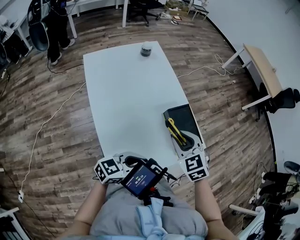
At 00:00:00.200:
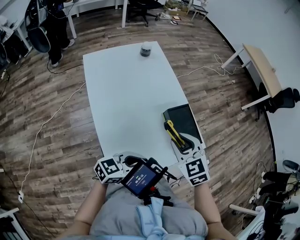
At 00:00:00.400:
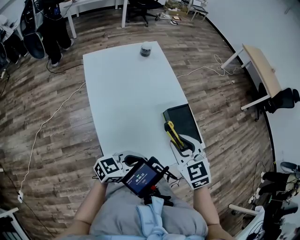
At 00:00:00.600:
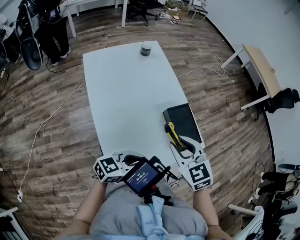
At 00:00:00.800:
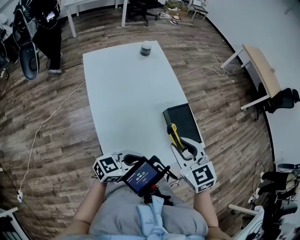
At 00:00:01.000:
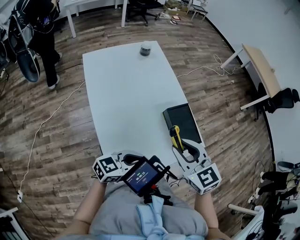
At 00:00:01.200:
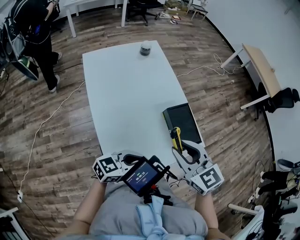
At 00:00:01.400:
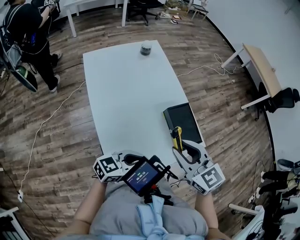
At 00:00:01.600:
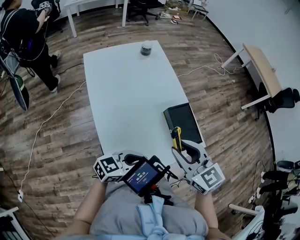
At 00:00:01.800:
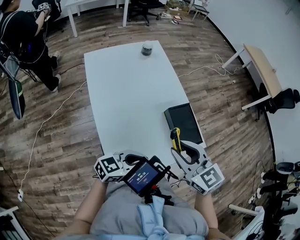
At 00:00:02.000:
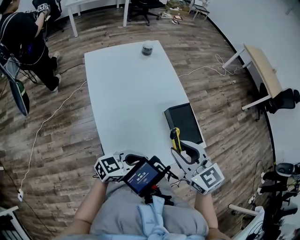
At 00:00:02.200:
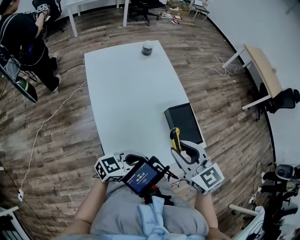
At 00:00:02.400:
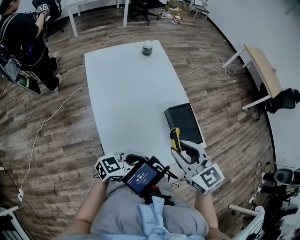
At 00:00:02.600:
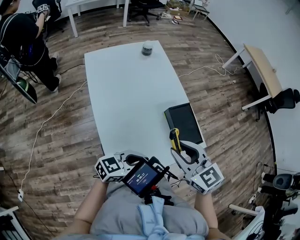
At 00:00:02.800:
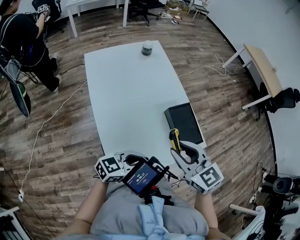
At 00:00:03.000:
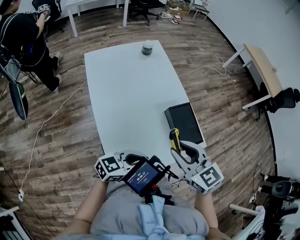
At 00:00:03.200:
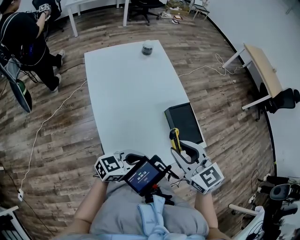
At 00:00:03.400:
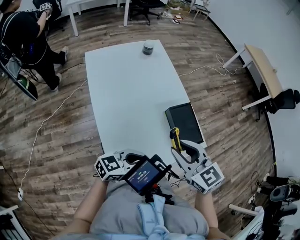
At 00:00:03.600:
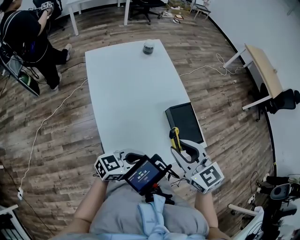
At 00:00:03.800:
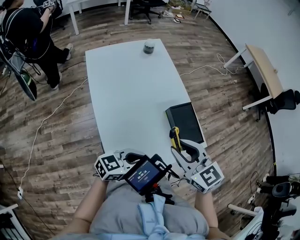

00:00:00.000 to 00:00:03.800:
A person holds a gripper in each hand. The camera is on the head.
00:00:00.000 to 00:00:01.200: The right gripper shifts some 10 cm upward and backward, and rotates about 20 degrees.
00:00:01.200 to 00:00:03.800: Neither gripper changes place.

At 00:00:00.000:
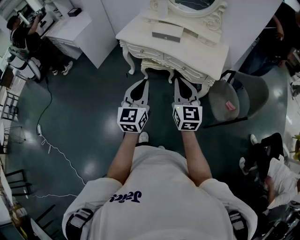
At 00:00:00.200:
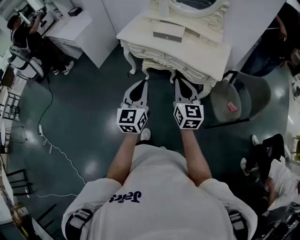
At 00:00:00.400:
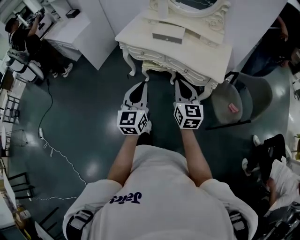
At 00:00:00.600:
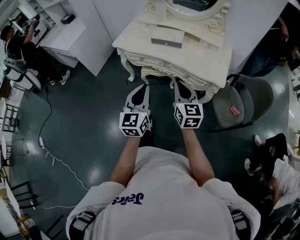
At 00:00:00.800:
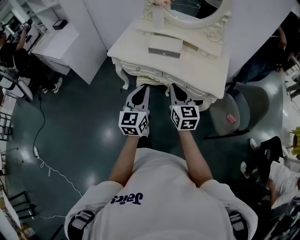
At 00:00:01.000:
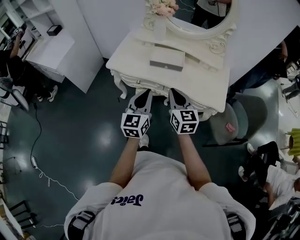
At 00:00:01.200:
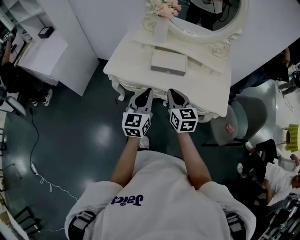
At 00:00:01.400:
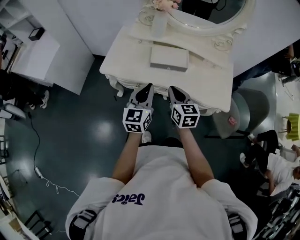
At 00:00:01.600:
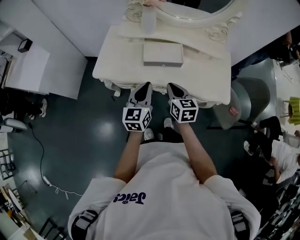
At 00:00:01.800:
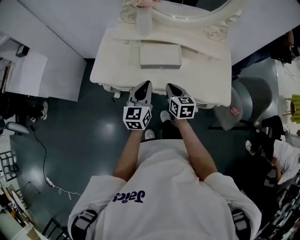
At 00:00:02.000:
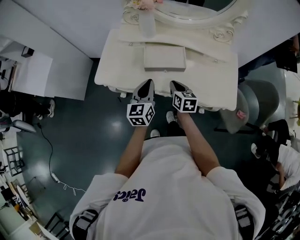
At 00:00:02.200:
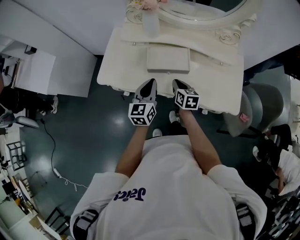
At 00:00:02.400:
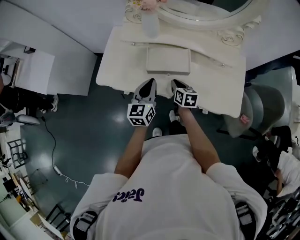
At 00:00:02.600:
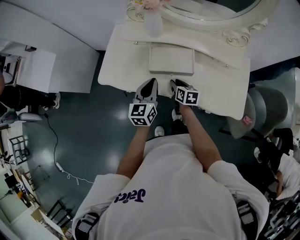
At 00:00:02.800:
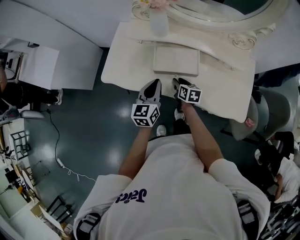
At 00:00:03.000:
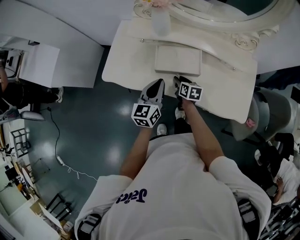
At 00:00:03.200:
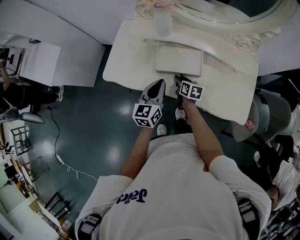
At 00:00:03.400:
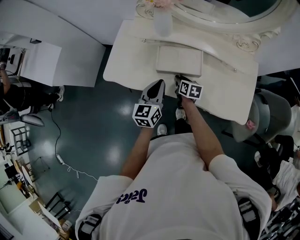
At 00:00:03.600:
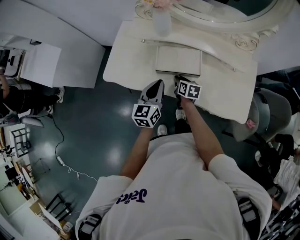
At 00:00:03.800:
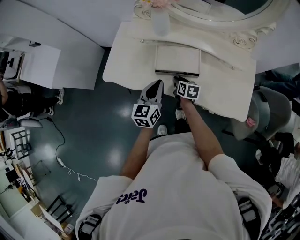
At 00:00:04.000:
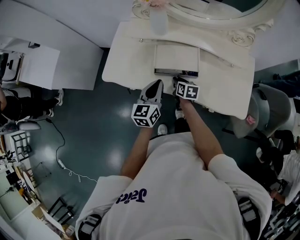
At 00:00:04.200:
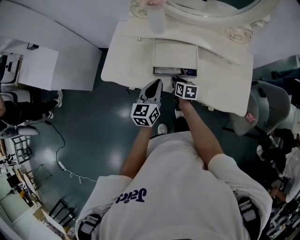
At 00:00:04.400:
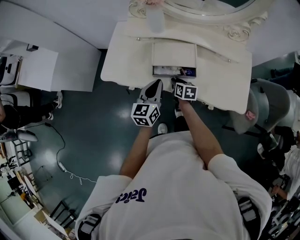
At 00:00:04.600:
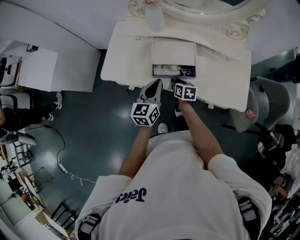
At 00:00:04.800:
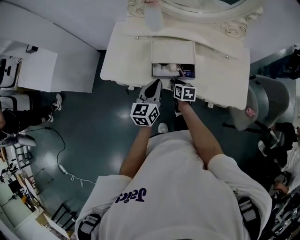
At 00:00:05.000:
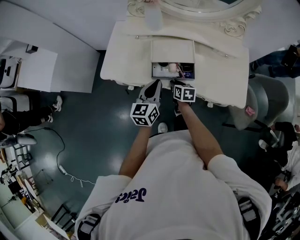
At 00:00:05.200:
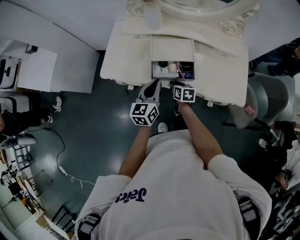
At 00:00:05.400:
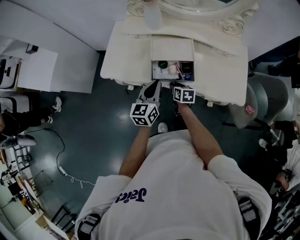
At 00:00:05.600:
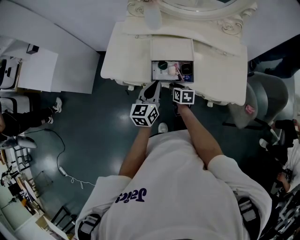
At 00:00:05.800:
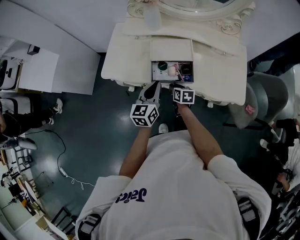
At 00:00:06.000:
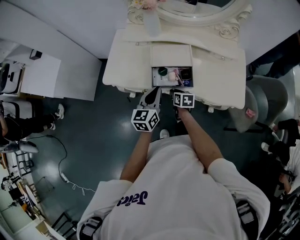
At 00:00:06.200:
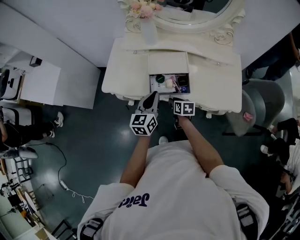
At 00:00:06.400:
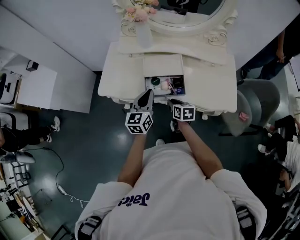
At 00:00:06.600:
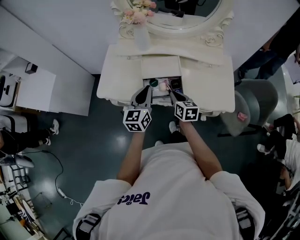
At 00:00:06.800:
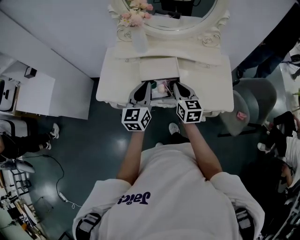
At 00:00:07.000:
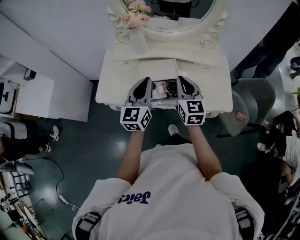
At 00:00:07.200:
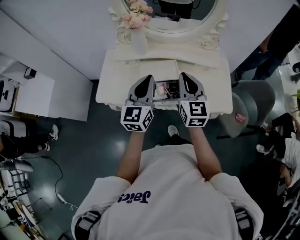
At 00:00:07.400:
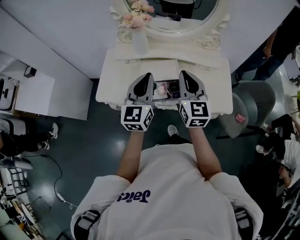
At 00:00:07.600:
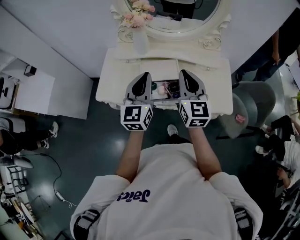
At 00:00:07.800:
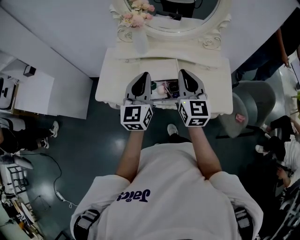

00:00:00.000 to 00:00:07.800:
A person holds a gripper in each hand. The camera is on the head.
00:00:00.000 to 00:00:01.600: Both grippers are carried forward, about 40 cm. The right gripper rotates roughly 30 degrees. The left gripper turns by some 20 degrees.
00:00:01.600 to 00:00:03.200: The left gripper moves forward and downward, approximately 15 cm; the right gripper shifts some 25 cm downward and forward, swivels roughly 30 degrees, and opens.
00:00:03.200 to 00:00:04.600: The right gripper shifts approximately 5 cm backward.
00:00:04.600 to 00:00:06.200: The right gripper moves backward, approximately 5 cm.
00:00:06.200 to 00:00:07.800: The right gripper is displaced upward by roughly 35 cm, angles its fingers upward, by about 40 degrees, and closes its fingers; the left gripper travels upward by approximately 15 cm, and turns by roughly 20 degrees.

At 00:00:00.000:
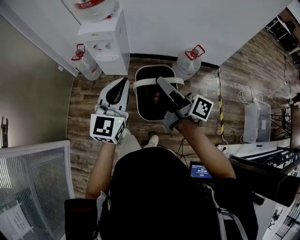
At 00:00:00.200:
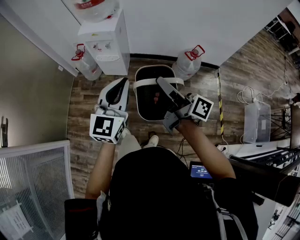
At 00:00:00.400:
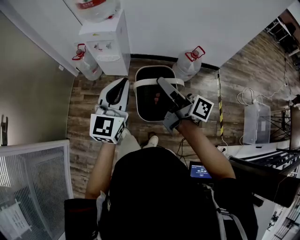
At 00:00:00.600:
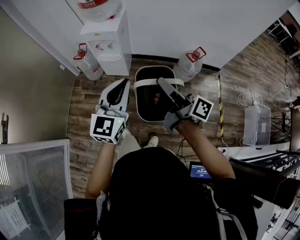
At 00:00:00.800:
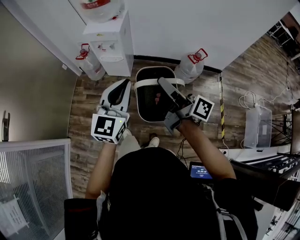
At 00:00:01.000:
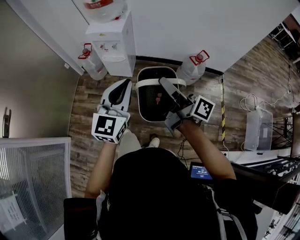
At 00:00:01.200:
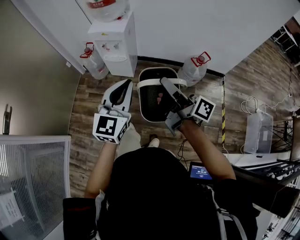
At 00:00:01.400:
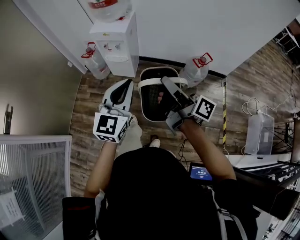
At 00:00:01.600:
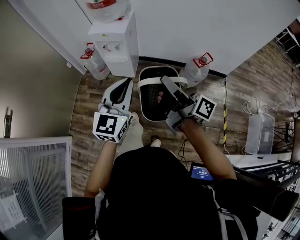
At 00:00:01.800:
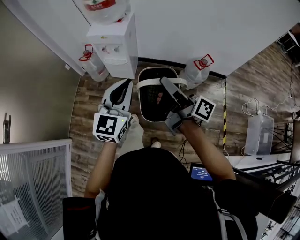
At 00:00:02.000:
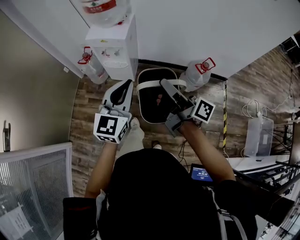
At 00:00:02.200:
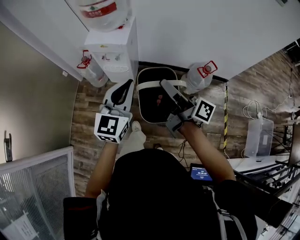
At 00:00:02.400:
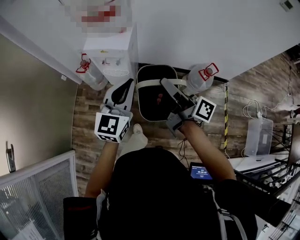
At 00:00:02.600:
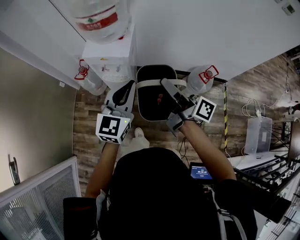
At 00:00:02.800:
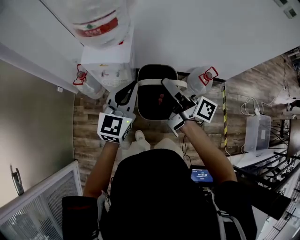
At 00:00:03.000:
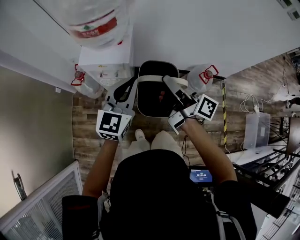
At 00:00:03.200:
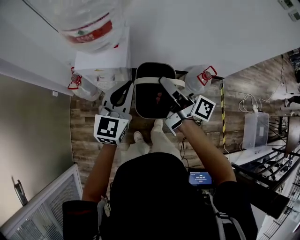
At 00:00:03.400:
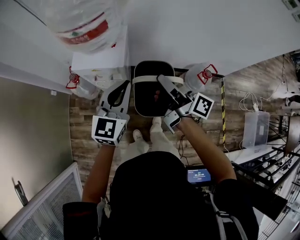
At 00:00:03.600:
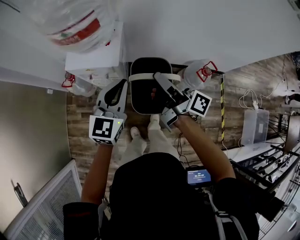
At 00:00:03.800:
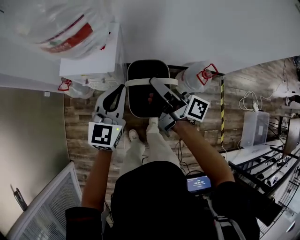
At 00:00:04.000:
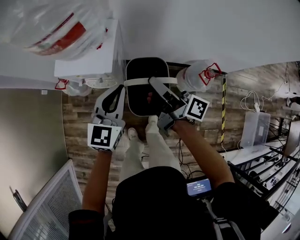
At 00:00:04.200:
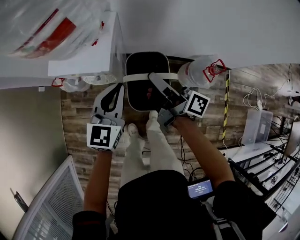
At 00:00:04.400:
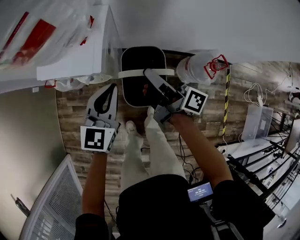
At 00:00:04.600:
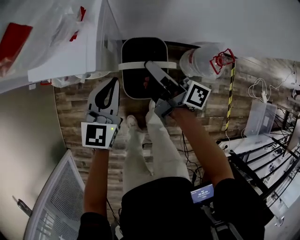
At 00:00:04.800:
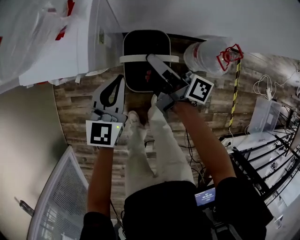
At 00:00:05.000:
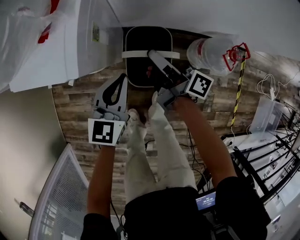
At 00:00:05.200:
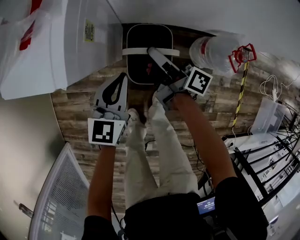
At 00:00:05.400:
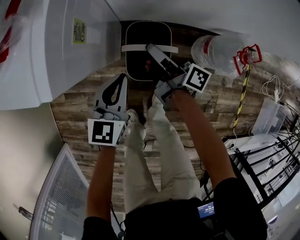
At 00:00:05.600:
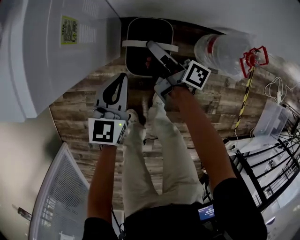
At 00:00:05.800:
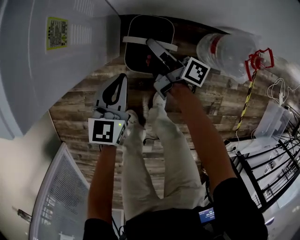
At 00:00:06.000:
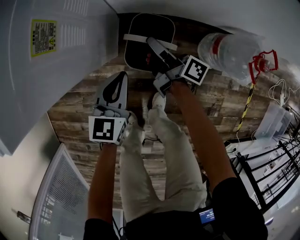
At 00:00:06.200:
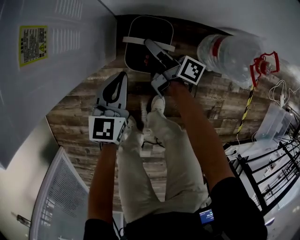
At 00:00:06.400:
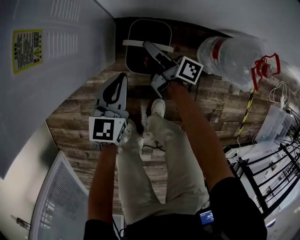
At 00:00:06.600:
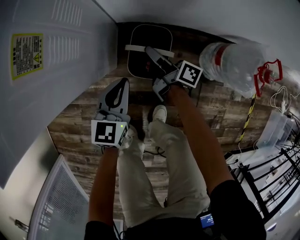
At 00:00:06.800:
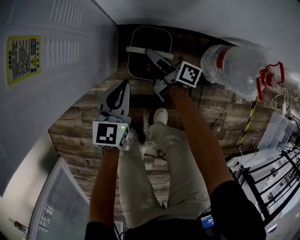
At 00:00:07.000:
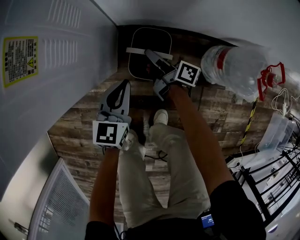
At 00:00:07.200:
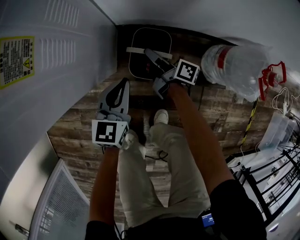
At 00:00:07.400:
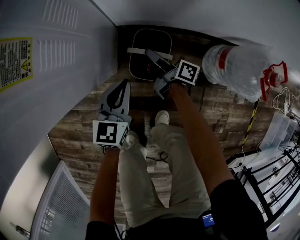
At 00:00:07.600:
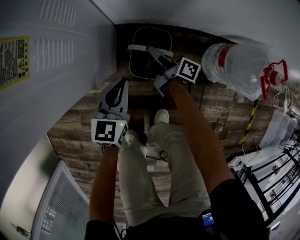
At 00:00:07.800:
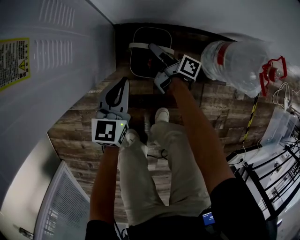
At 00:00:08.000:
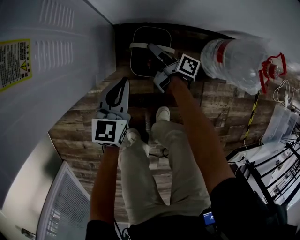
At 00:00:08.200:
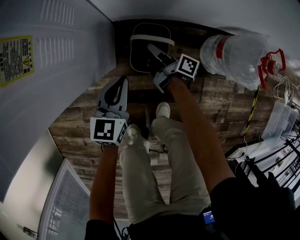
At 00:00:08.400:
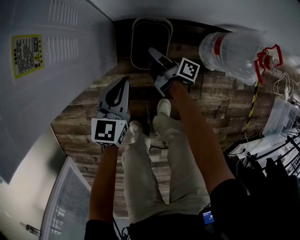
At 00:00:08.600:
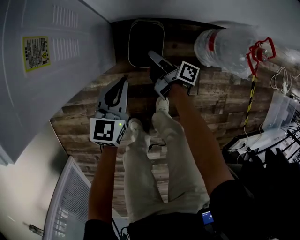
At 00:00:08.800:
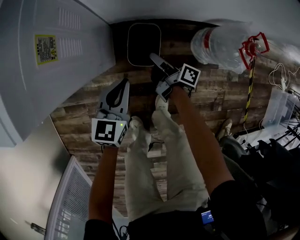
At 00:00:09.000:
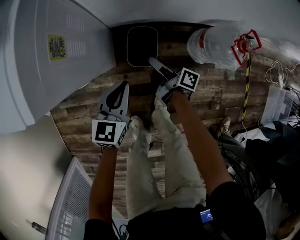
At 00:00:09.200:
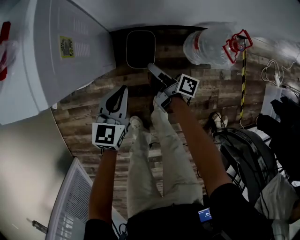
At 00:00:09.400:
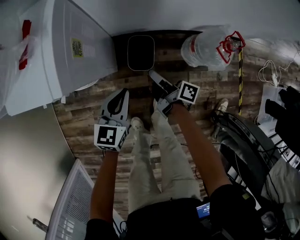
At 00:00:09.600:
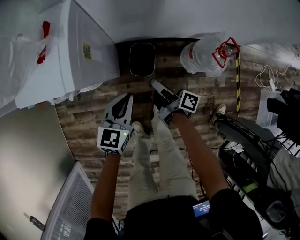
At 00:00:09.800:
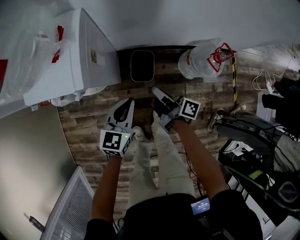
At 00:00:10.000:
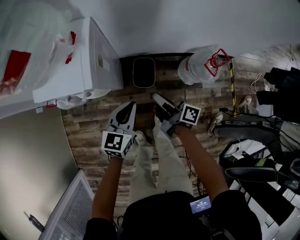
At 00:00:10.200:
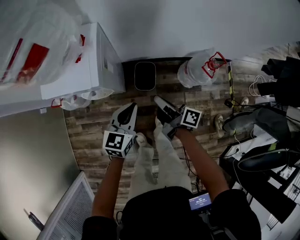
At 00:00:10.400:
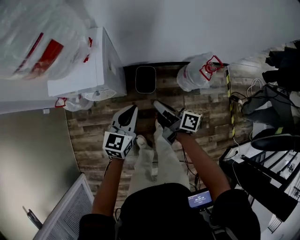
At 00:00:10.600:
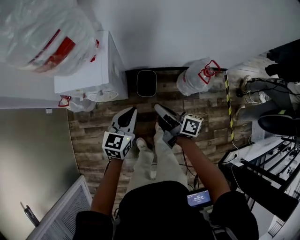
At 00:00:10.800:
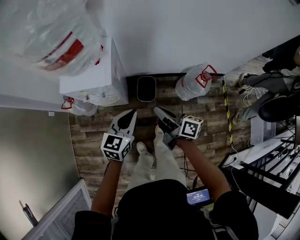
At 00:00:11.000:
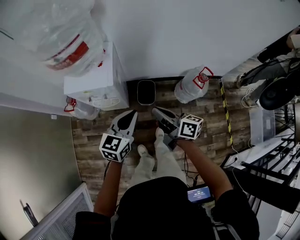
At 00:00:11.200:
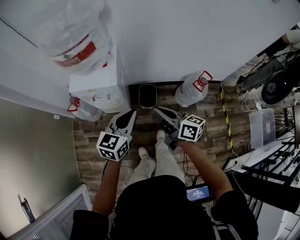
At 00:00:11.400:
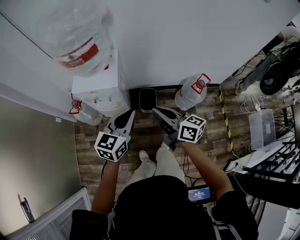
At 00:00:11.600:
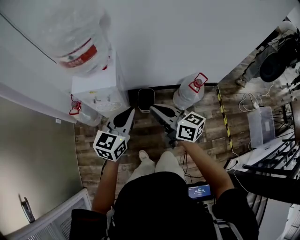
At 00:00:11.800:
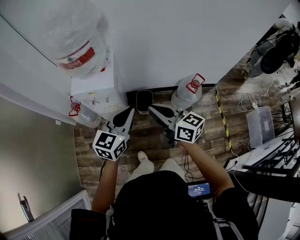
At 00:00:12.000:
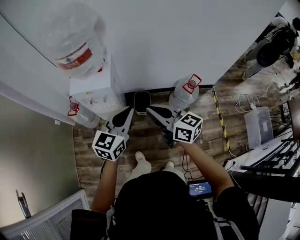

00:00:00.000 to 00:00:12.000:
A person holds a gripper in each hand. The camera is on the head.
00:00:00.000 to 00:00:01.600: The grippers make only small movements.
00:00:01.600 to 00:00:03.000: The two grippers go about 30 cm forward.
00:00:03.000 to 00:00:04.400: Both grippers travel together downward and forward, about 20 cm.
00:00:04.400 to 00:00:06.000: The two grippers go some 35 cm downward.
00:00:06.000 to 00:00:07.600: The right gripper is displaced downward by some 15 cm. Meanwhile the left gripper travels downward by approximately 10 cm.
00:00:07.600 to 00:00:09.000: The left gripper goes roughly 15 cm upward; the right gripper travels upward and backward by about 15 cm.
00:00:09.000 to 00:00:10.400: Both grippers move upward, roughly 30 cm. The right gripper closes its fingers.
00:00:10.400 to 00:00:12.000: The grippers both shift upward and backward by roughly 25 cm. The right gripper rotates around the line of its fingers by approximately 50 degrees, counterclockwise from behind.
